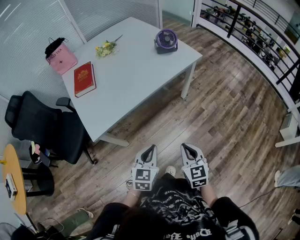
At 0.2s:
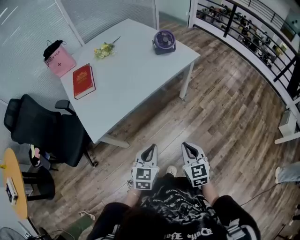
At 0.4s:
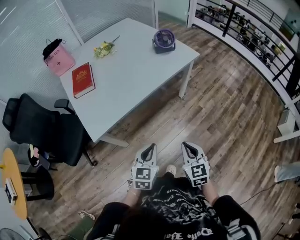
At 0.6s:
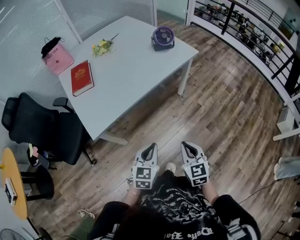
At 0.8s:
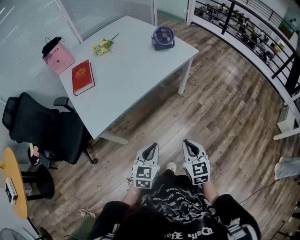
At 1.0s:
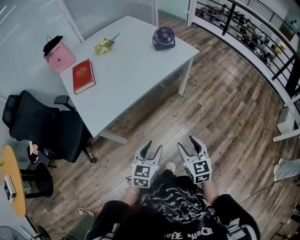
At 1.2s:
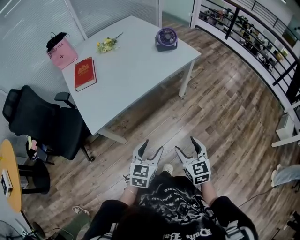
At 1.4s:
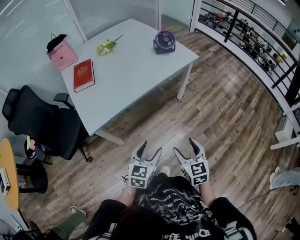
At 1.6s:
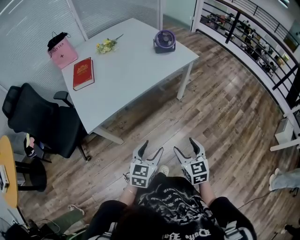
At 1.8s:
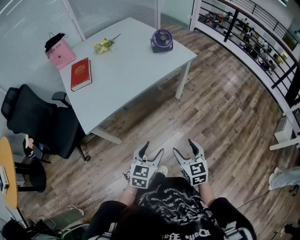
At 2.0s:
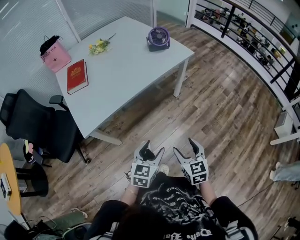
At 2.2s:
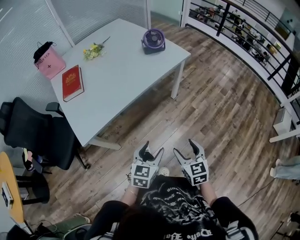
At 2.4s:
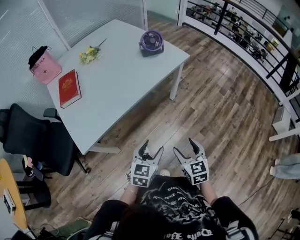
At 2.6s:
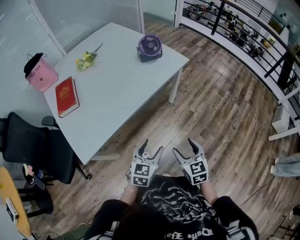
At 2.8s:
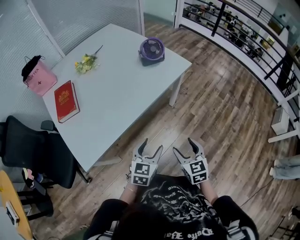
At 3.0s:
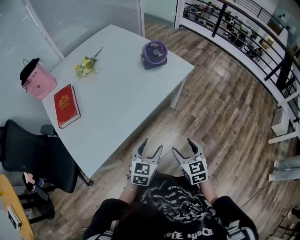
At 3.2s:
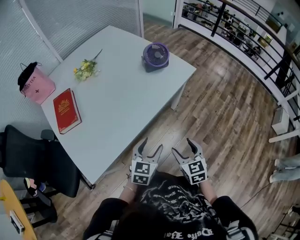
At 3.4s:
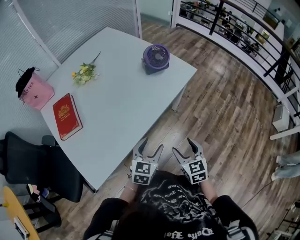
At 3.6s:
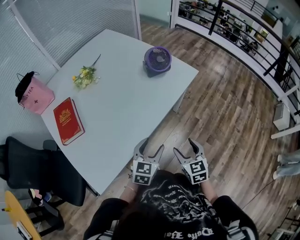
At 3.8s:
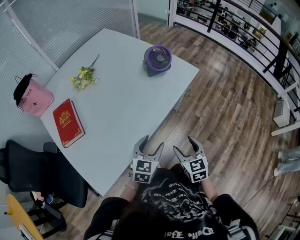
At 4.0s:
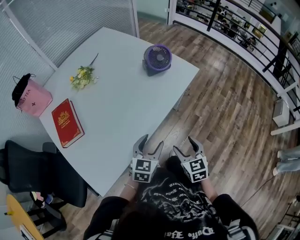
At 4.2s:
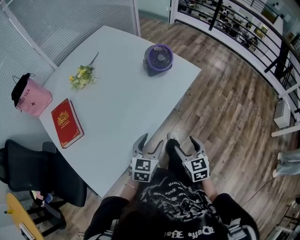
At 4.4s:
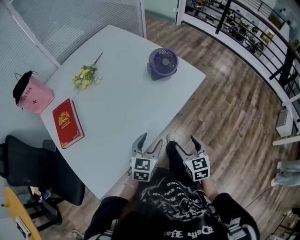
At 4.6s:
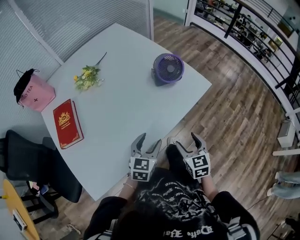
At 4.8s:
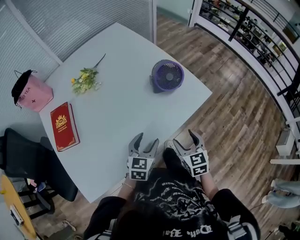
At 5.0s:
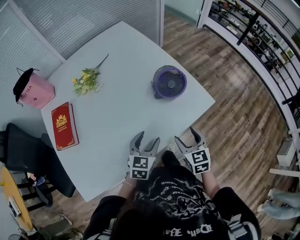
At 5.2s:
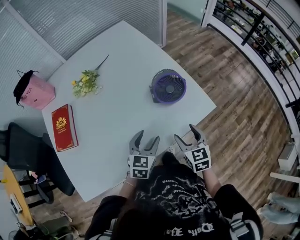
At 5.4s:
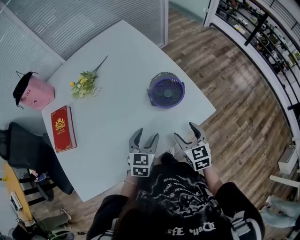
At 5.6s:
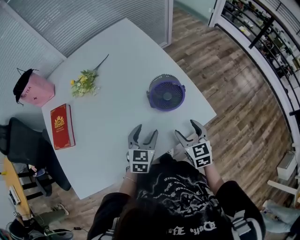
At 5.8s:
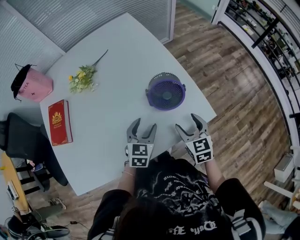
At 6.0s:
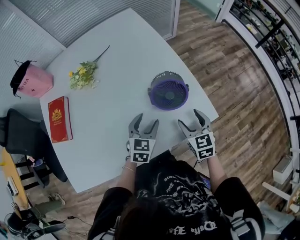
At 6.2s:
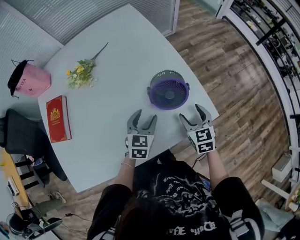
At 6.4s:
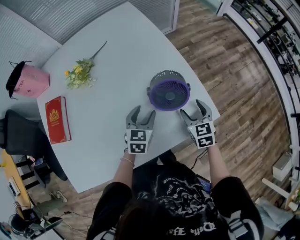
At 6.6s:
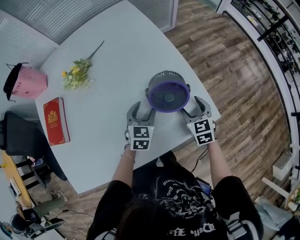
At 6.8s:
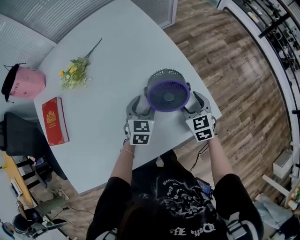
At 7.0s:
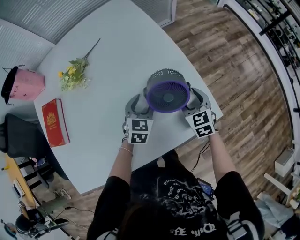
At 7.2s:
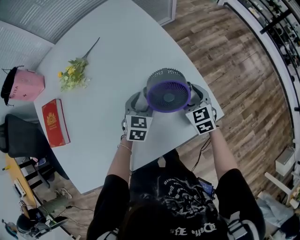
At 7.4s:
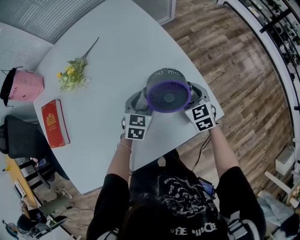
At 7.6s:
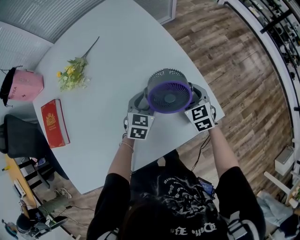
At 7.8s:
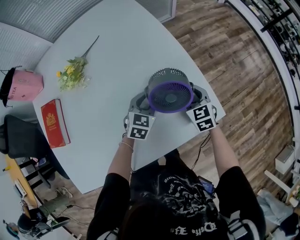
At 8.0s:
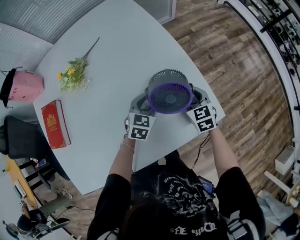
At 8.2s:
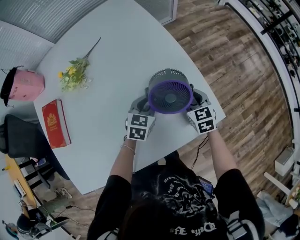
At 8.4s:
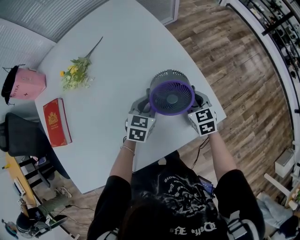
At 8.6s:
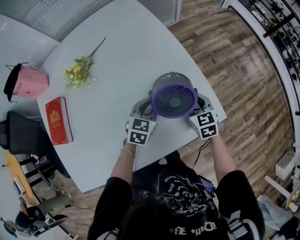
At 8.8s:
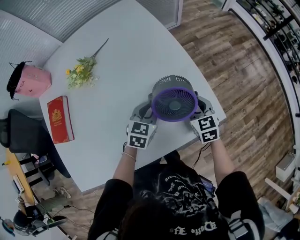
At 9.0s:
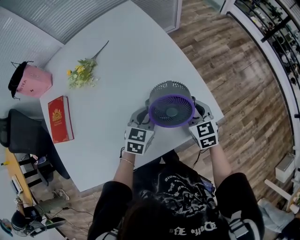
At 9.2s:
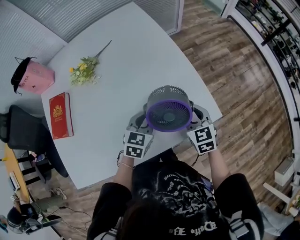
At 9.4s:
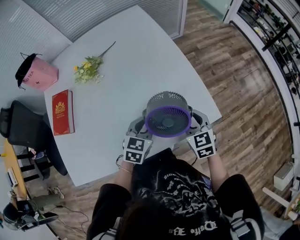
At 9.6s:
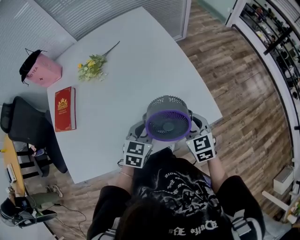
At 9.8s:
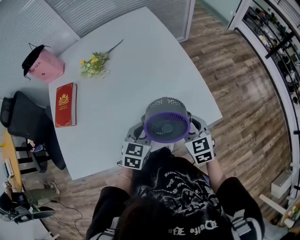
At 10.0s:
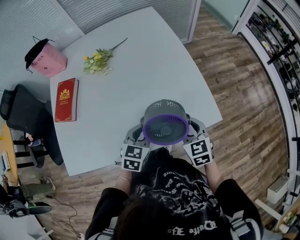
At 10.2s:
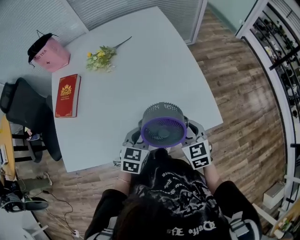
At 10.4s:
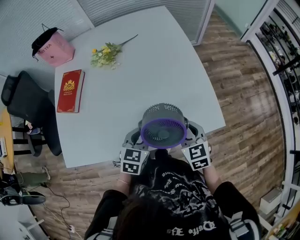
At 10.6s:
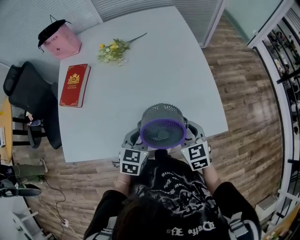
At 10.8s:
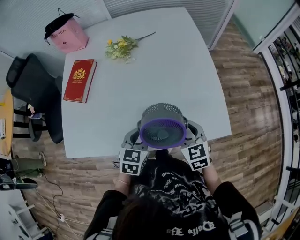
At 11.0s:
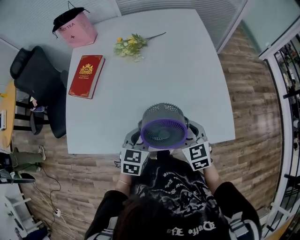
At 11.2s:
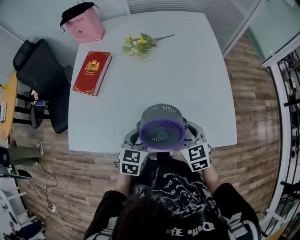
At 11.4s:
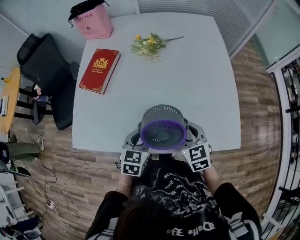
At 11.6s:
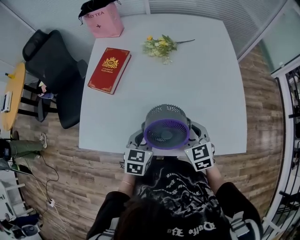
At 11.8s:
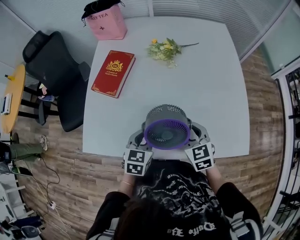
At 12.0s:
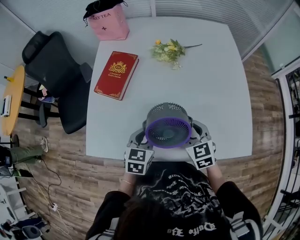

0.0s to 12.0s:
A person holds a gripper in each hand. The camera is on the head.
0.0s to 1.6s: The left gripper ends up approximately 5 cm from where it was, and opens; the right gripper opens its fingers.
1.6s to 3.0s: Both grippers travel together forward, some 25 cm.
3.0s to 4.4s: The left gripper goes approximately 15 cm forward and to the left; the right gripper heads forward, covering roughly 15 cm.
4.4s to 6.0s: The two grippers go roughly 30 cm forward. The left gripper turns by about 20 degrees. The right gripper turns by approximately 20 degrees.
6.0s to 7.6s: Both grippers travel together forward and downward, roughly 15 cm.
7.6s to 9.0s: Both grippers move backward and upward, some 10 cm. The left gripper closes its fingers.
9.0s to 10.4s: Both grippers move backward and to the left, about 15 cm.
10.4s to 12.0s: The left gripper is displaced to the left by about 25 cm; the right gripper shifts approximately 25 cm to the left and forward.

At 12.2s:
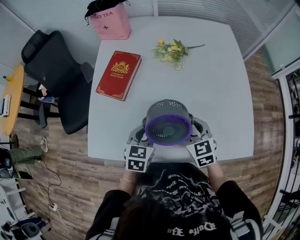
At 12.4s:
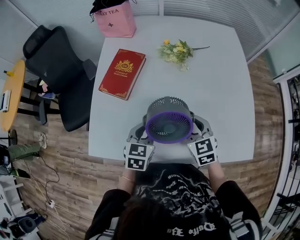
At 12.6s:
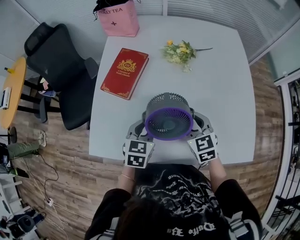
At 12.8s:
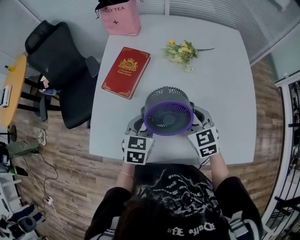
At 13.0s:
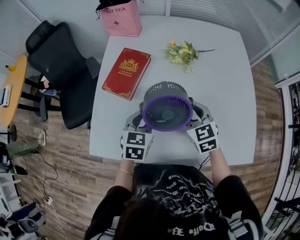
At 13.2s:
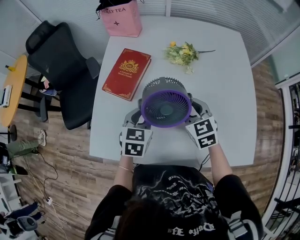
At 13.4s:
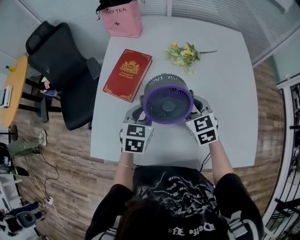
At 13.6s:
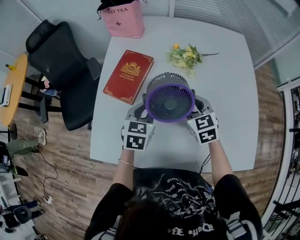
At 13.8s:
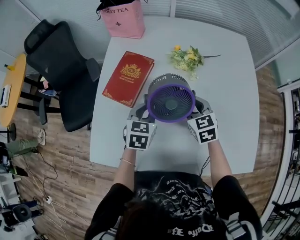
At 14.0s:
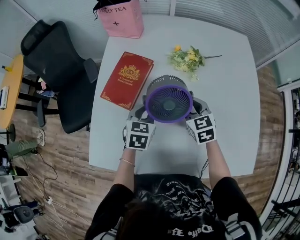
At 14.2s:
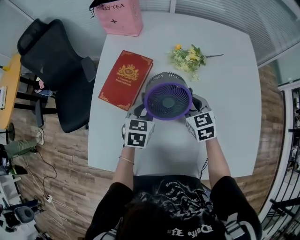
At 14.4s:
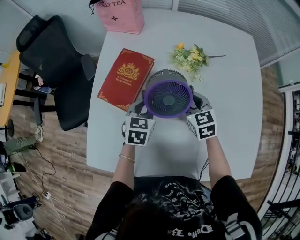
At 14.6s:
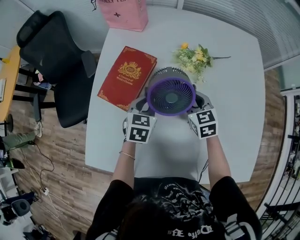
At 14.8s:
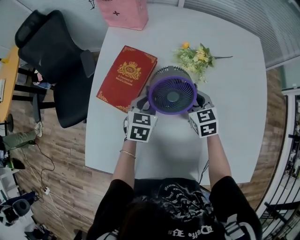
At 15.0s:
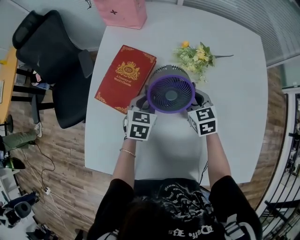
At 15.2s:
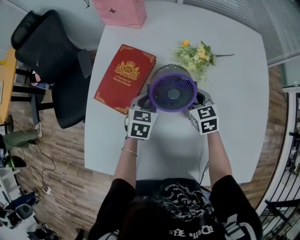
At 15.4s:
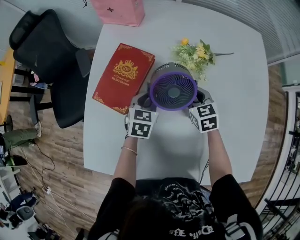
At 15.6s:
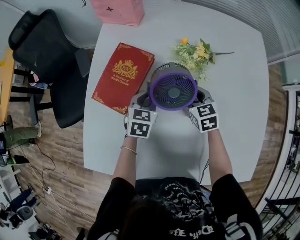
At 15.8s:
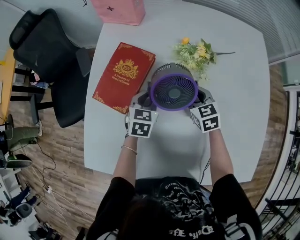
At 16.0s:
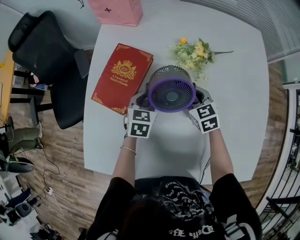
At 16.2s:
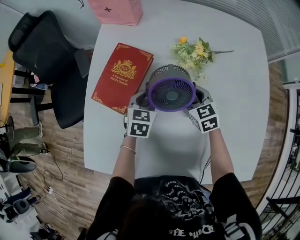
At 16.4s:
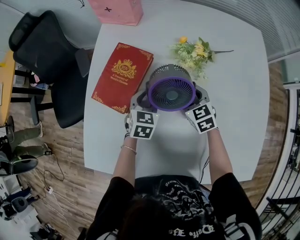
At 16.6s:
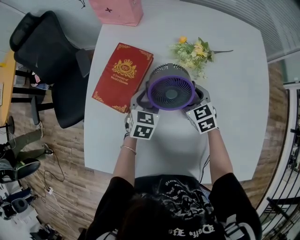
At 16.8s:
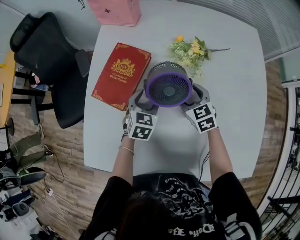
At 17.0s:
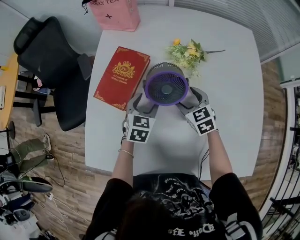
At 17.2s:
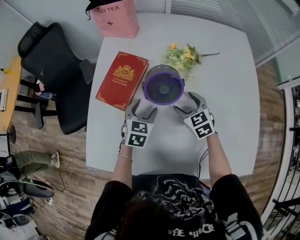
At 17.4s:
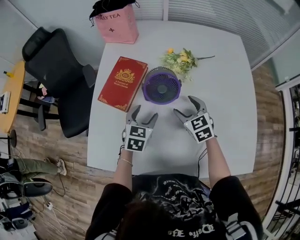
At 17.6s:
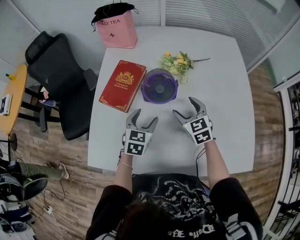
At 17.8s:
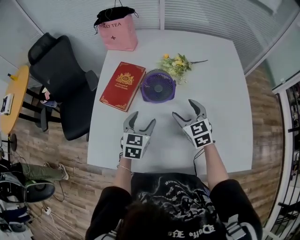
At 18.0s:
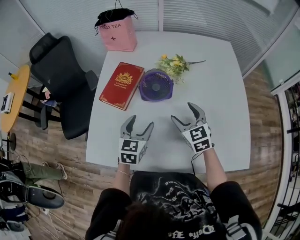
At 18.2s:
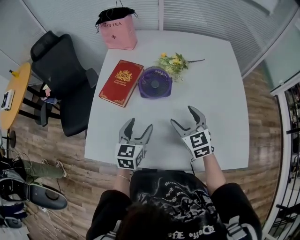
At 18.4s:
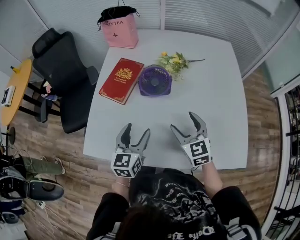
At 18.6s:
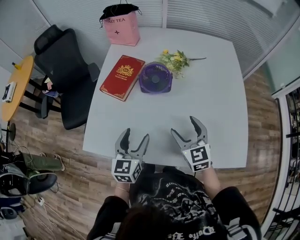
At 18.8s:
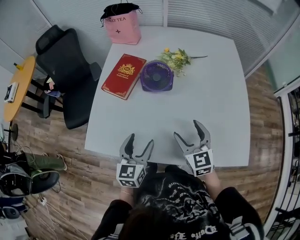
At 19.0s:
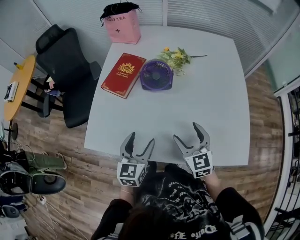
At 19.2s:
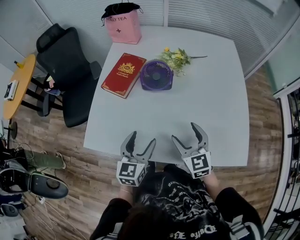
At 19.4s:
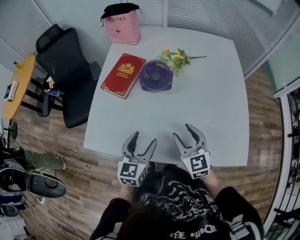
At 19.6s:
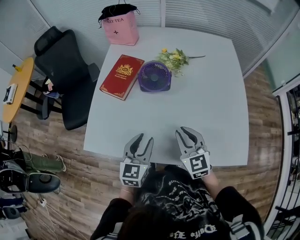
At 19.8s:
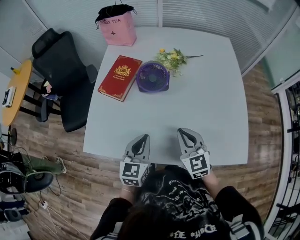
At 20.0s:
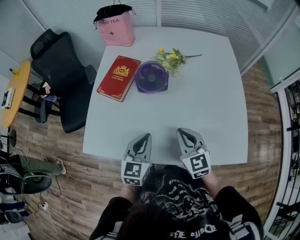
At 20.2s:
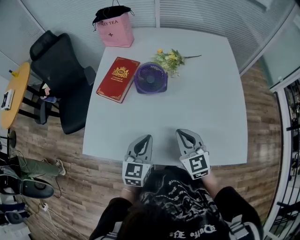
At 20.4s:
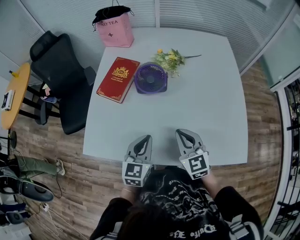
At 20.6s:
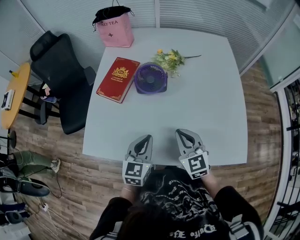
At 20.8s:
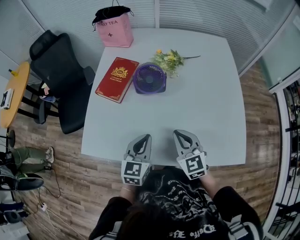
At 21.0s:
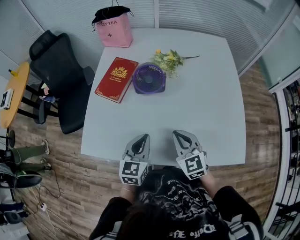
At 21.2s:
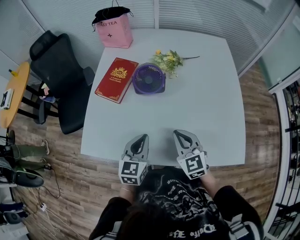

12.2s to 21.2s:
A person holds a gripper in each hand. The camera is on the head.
12.2s to 13.8s: The grippers both shift forward by some 15 cm.
13.8s to 15.2s: The two grippers go approximately 15 cm forward and downward.
15.2s to 16.6s: The left gripper opens its fingers, while the right gripper opens its fingers.
16.6s to 18.2s: The grippers both shift backward and upward by some 25 cm. The left gripper rotates approximately 20 degrees.
18.2s to 19.8s: The grippers both shift backward by about 10 cm. The left gripper closes its fingers. The right gripper closes its fingers.
19.8s to 21.2s: The grippers stay close to where they were, moving slightly.

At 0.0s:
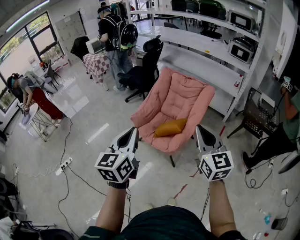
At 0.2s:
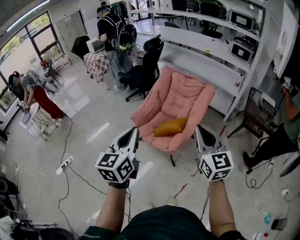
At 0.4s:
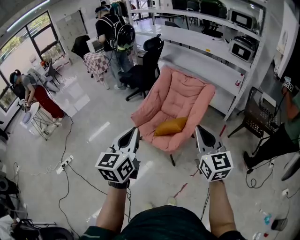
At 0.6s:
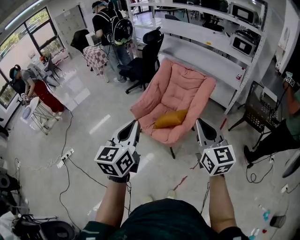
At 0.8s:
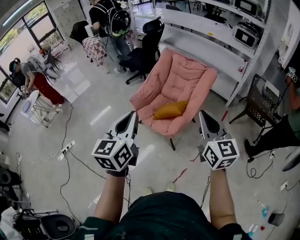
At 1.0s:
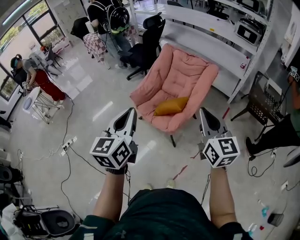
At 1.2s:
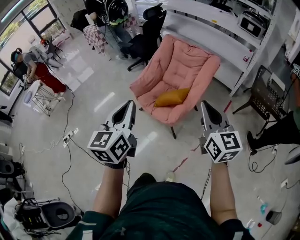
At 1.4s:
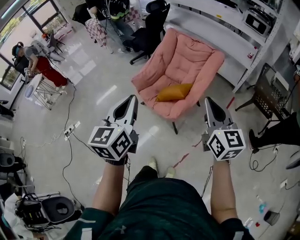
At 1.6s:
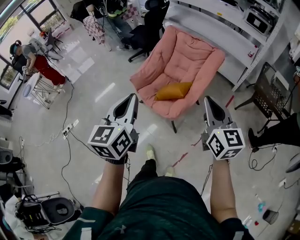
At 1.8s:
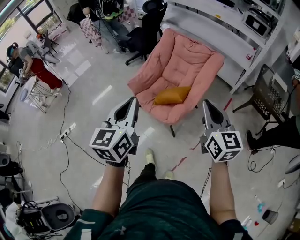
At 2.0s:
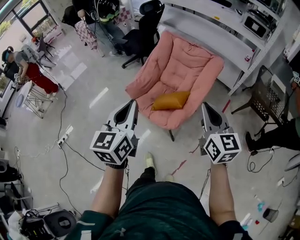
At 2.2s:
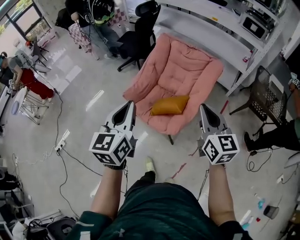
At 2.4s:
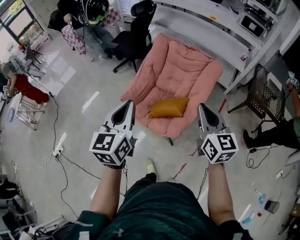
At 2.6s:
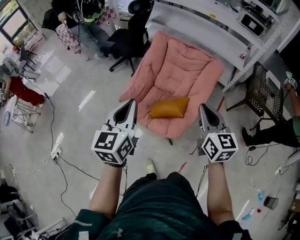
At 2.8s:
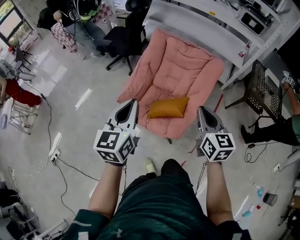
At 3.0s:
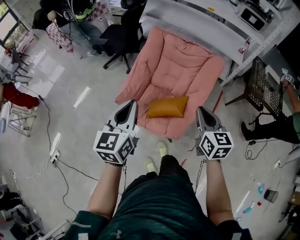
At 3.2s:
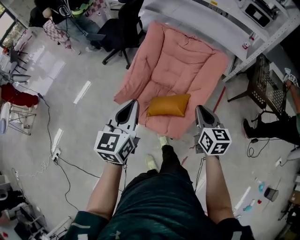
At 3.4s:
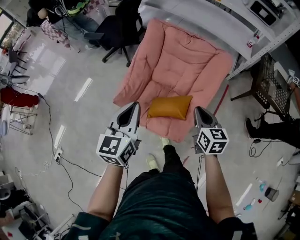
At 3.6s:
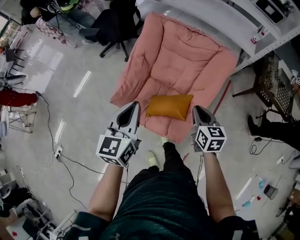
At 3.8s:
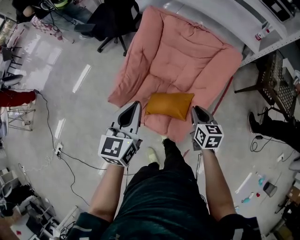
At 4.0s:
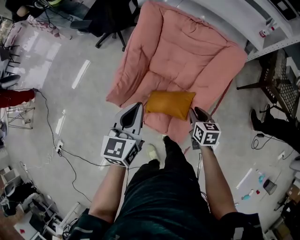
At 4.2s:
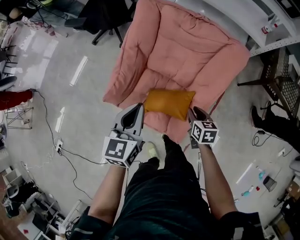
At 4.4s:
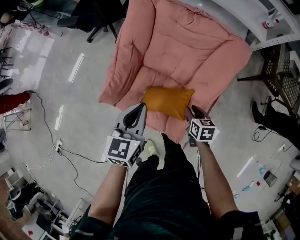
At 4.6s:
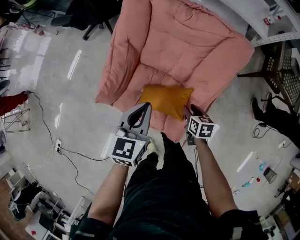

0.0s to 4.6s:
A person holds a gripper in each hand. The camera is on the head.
0.0s to 1.6s: The left gripper goes some 5 cm to the right; the right gripper travels downward and to the right by some 10 cm.
1.6s to 3.0s: The left gripper moves forward, some 30 cm; the right gripper is displaced forward and downward by about 25 cm, and changes its angle by approximately 20 degrees.
3.0s to 4.6s: The left gripper travels downward, forward and to the right by about 35 cm, and rotates approximately 20 degrees, while the right gripper shifts some 40 cm downward and forward, angles its fingers downward, by some 40 degrees, and opens.
